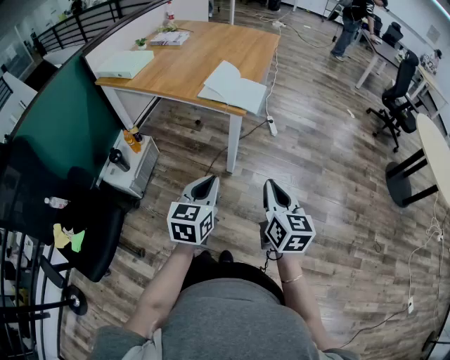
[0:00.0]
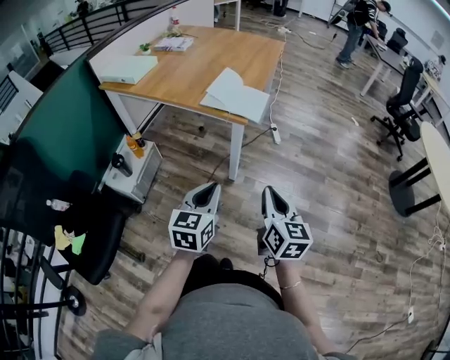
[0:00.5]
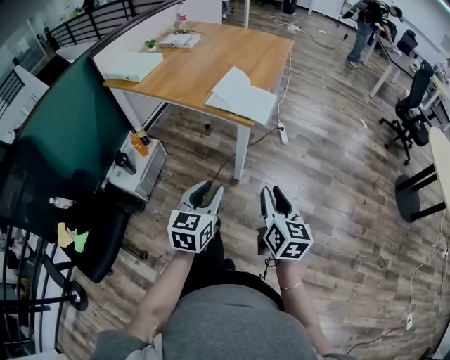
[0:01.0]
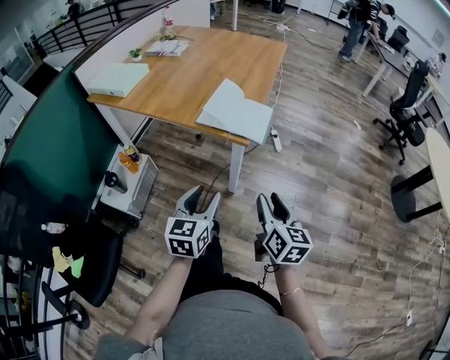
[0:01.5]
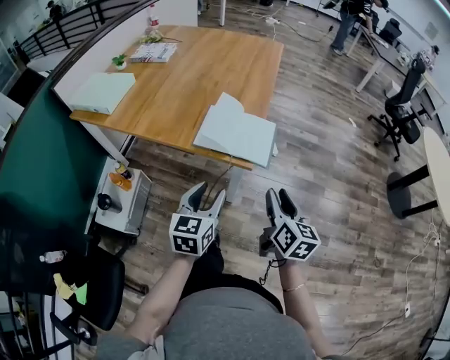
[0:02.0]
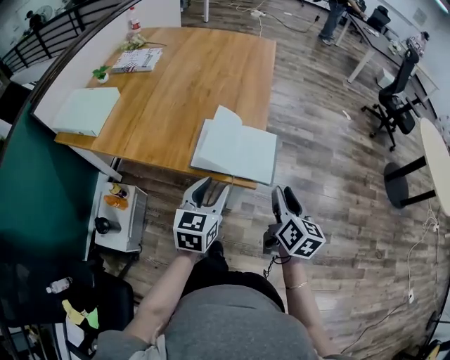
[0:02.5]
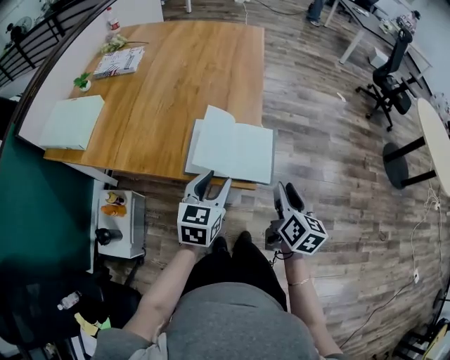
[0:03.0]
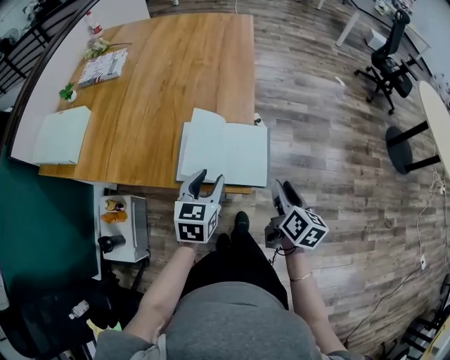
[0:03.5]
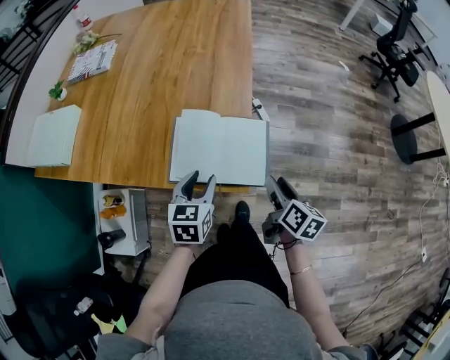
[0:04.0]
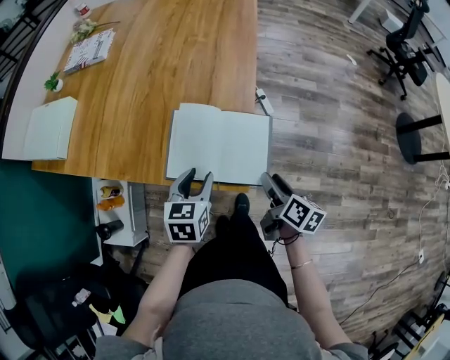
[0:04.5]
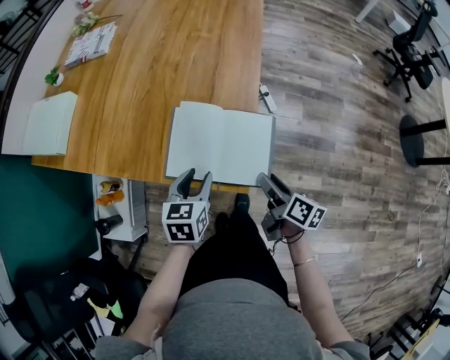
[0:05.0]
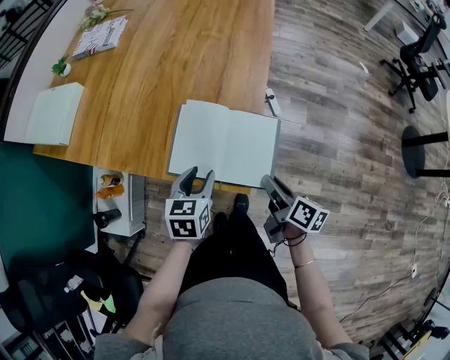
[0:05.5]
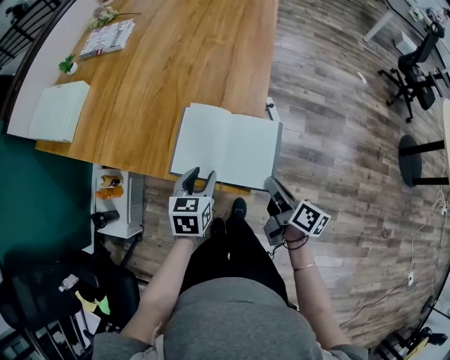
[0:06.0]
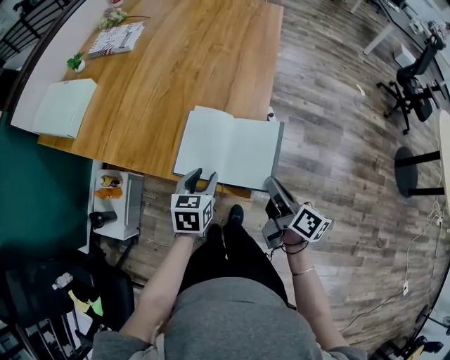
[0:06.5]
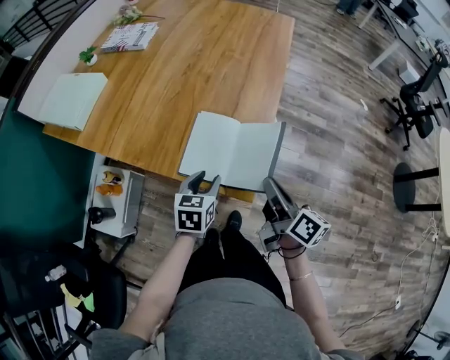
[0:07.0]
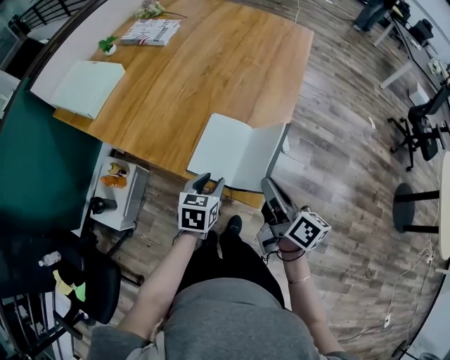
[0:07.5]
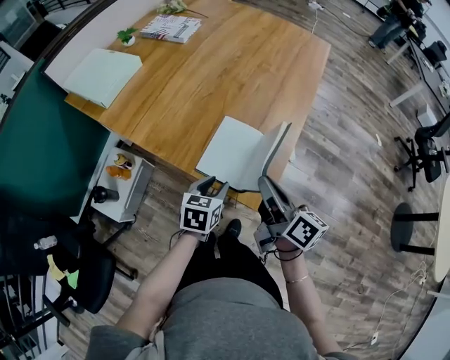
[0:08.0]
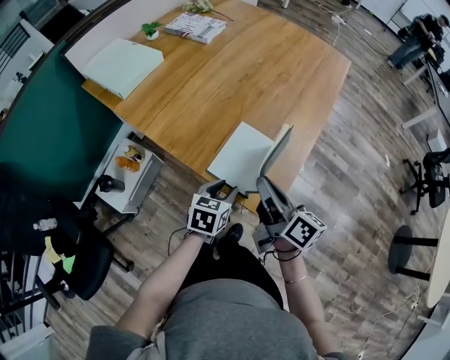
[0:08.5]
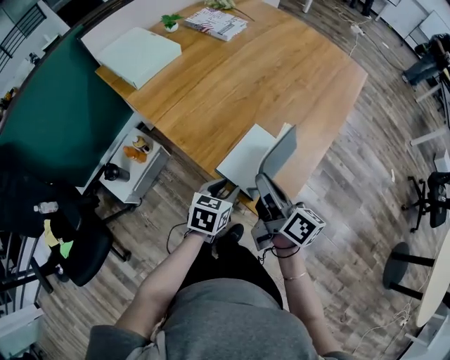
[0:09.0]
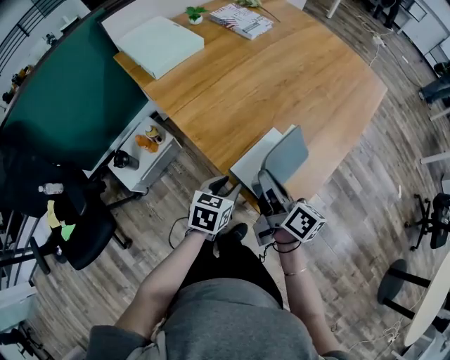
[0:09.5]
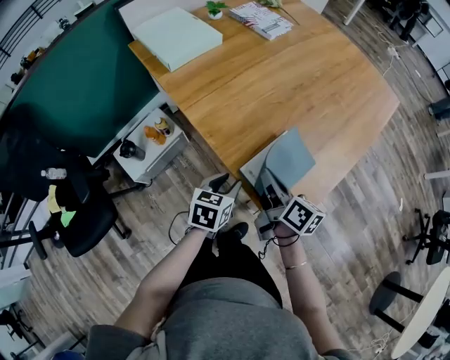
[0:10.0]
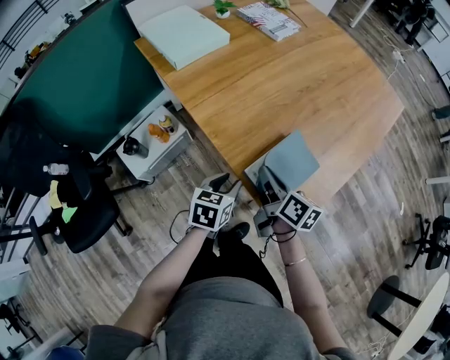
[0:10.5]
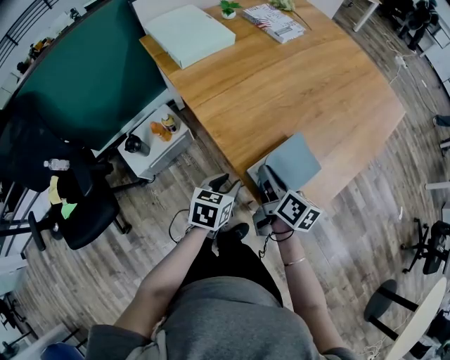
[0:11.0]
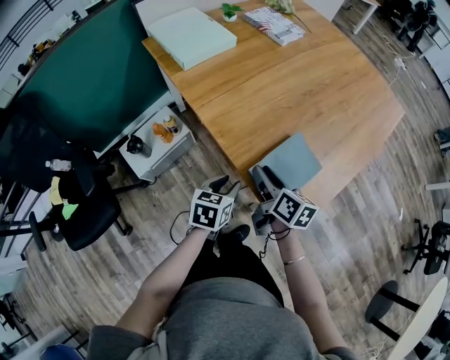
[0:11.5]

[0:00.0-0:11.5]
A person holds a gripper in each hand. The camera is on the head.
0:00.0 to 0:02.0: Both grippers travel together forward, about 25 cm. The left gripper opens up; the right gripper opens its fingers.
0:02.0 to 0:04.0: Both grippers travel together forward and downward, about 20 cm. The right gripper rotates about 20 degrees.
0:04.0 to 0:06.0: The right gripper changes its angle by about 20 degrees, and closes its fingers.
0:06.0 to 0:07.5: The right gripper shifts approximately 15 cm upward and to the left, and swivels roughly 20 degrees.
0:07.5 to 0:09.5: The right gripper is displaced to the left and forward by some 15 cm, and swivels approximately 20 degrees. The left gripper heads to the left, covering approximately 5 cm.
0:09.5 to 0:11.5: The right gripper is displaced downward and to the left by roughly 10 cm, and opens its fingers, while the left gripper shifts about 5 cm to the left.

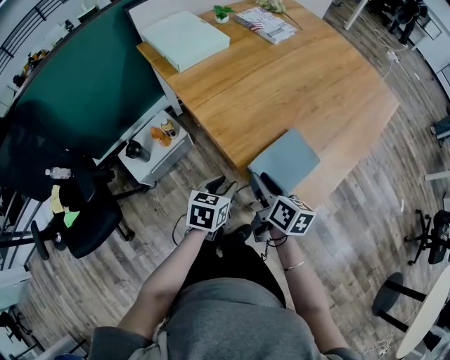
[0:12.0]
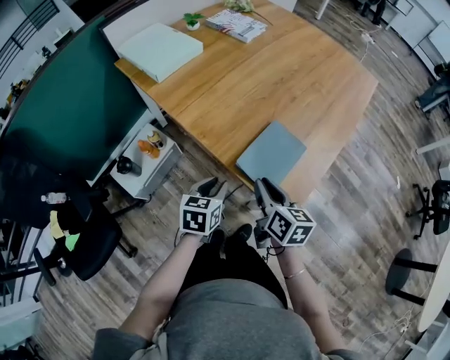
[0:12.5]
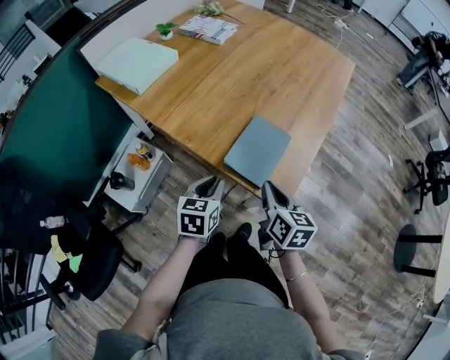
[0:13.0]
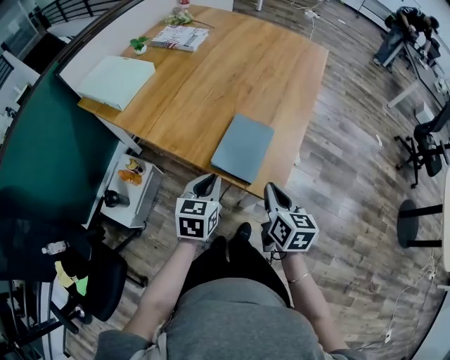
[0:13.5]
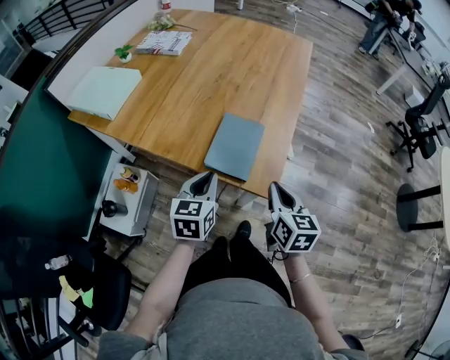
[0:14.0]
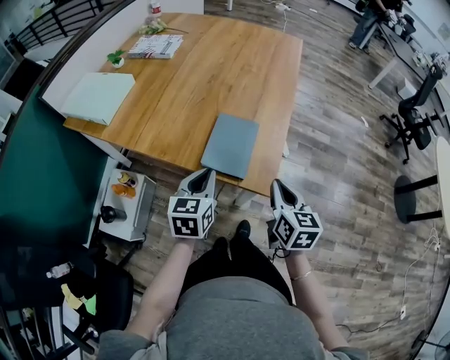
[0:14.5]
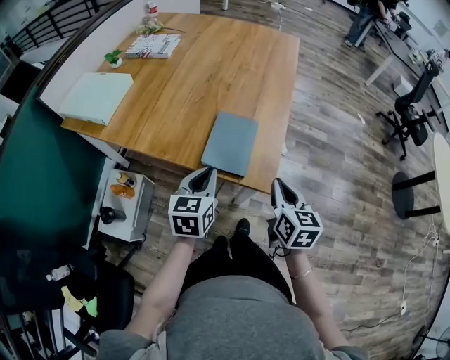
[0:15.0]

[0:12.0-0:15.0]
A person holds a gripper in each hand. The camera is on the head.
0:12.0 to 0:13.5: The right gripper moves to the right and backward, about 15 cm, changes its angle by about 30 degrees, and closes its fingers, while the left gripper travels upward by roughly 5 cm, rotates about 20 degrees, and closes up.
0:13.5 to 0:15.0: The right gripper shifts by some 5 cm.

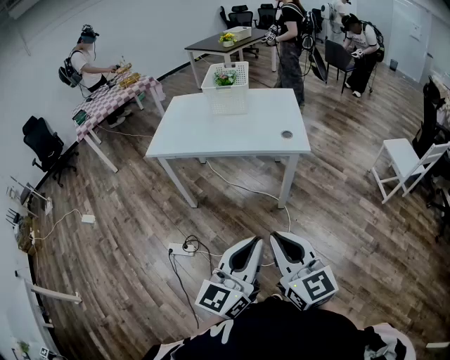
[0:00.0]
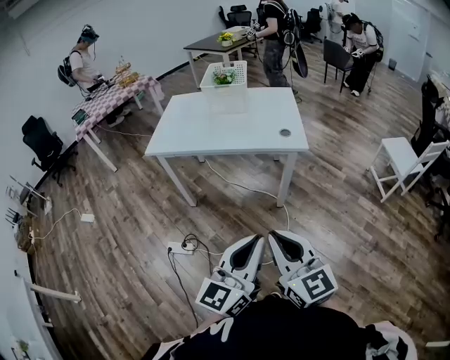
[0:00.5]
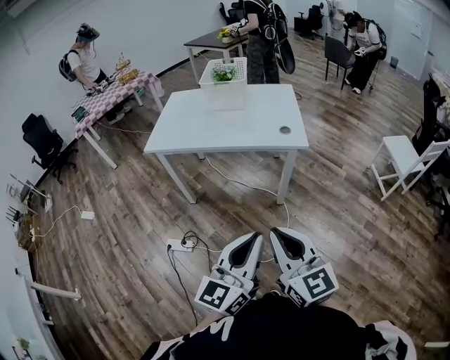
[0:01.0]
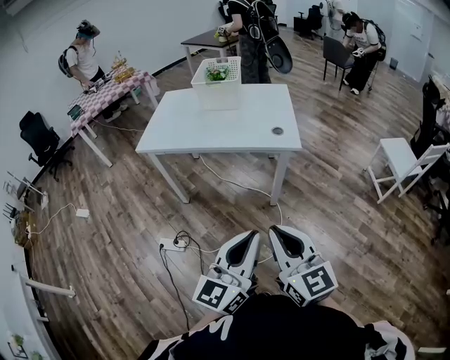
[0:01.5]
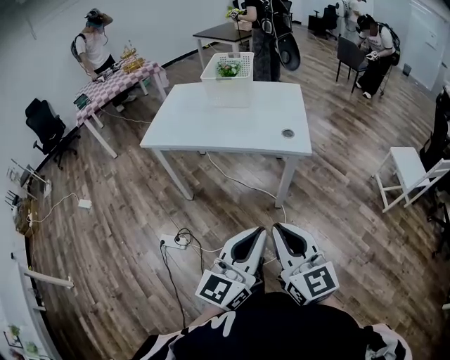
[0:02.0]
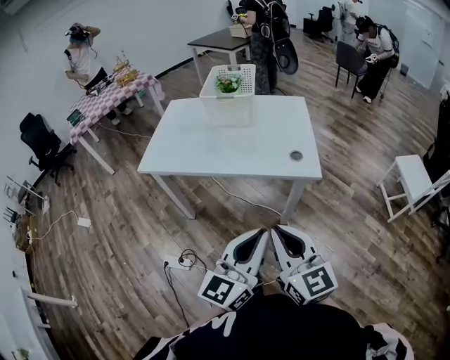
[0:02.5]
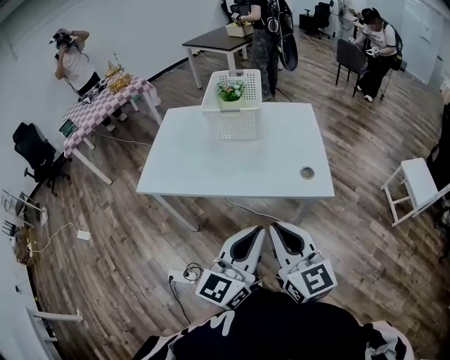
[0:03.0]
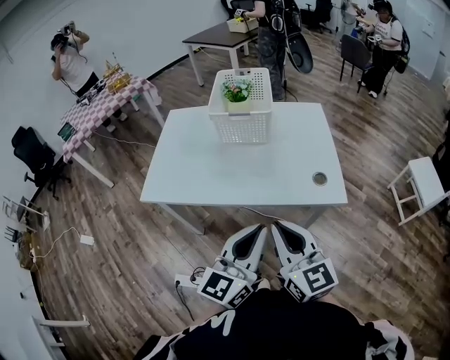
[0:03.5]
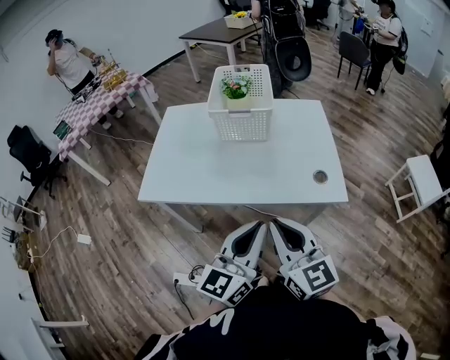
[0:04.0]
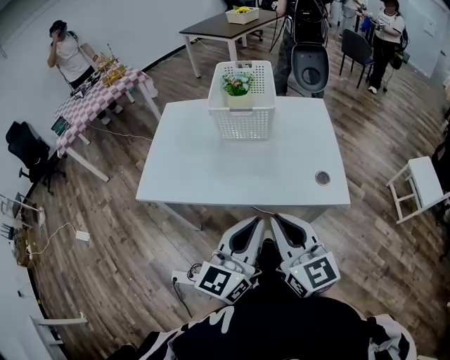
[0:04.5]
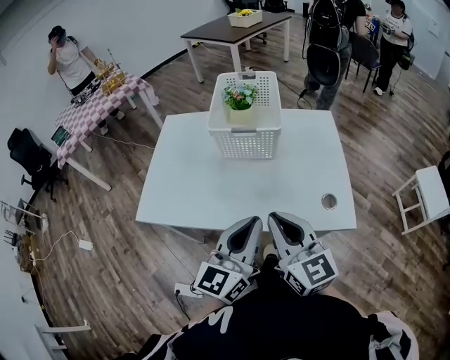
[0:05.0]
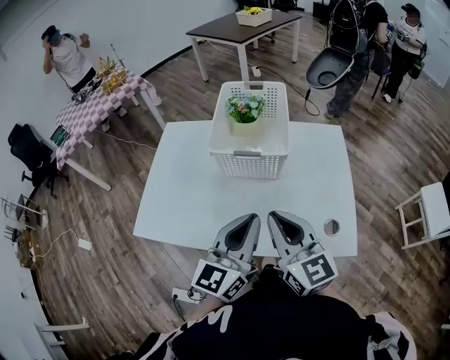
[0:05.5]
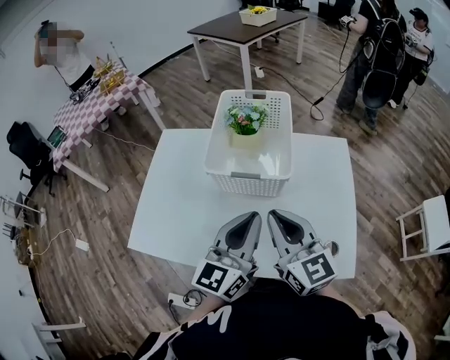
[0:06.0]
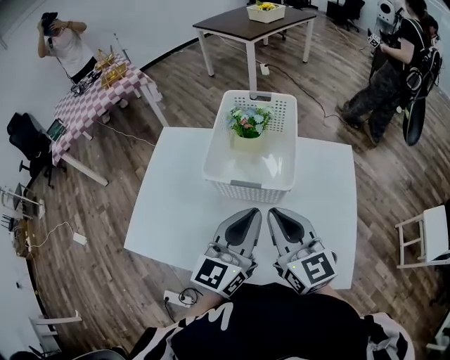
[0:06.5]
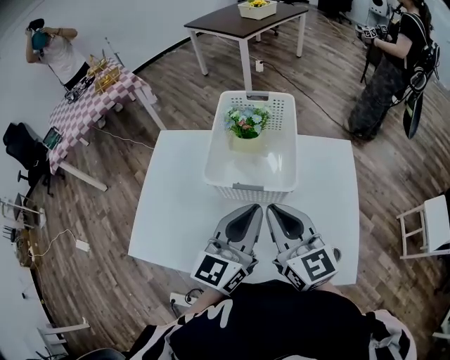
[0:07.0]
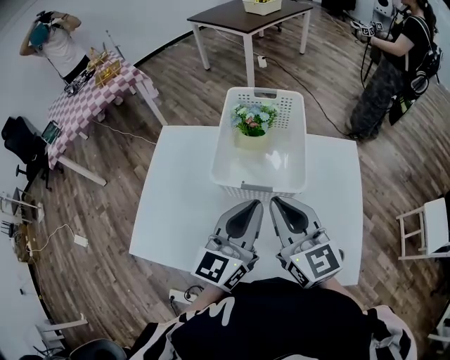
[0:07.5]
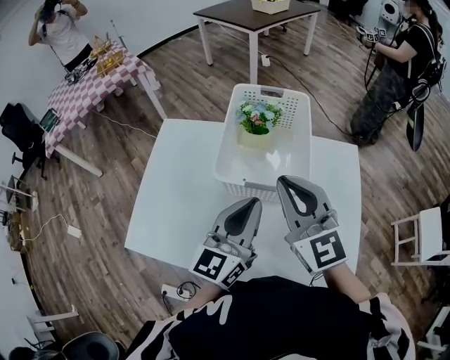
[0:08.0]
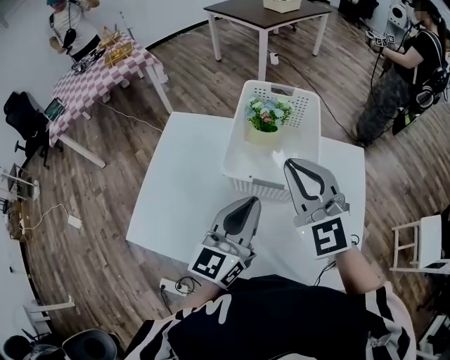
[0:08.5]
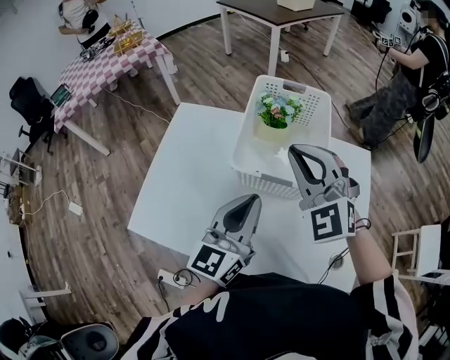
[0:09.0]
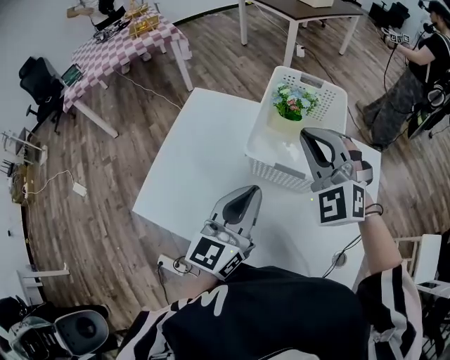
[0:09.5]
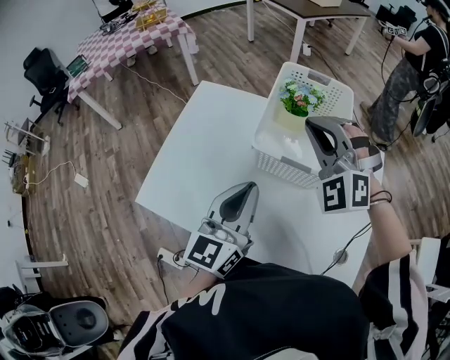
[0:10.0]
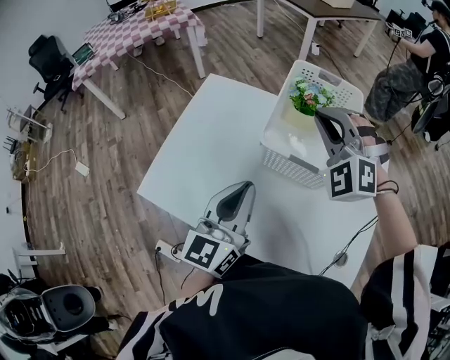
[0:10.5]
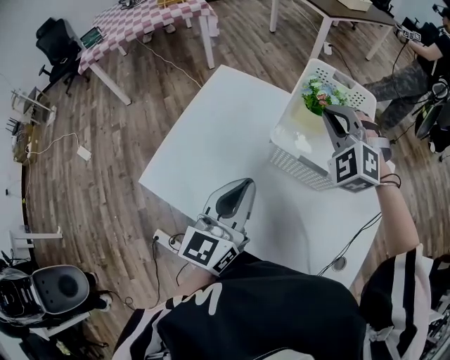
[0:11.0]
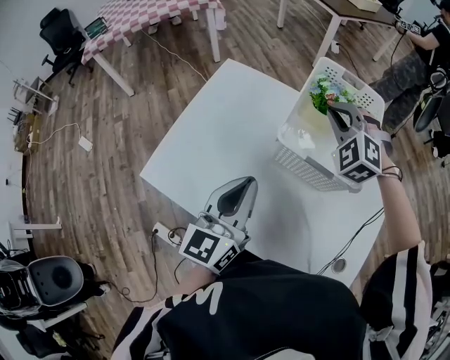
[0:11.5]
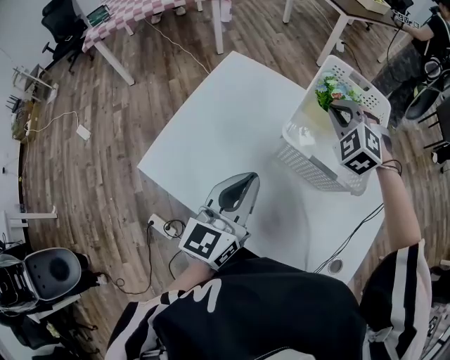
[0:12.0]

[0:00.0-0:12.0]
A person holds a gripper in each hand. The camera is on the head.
0:00.0 to 0:02.0: The right gripper travels forward by about 5 cm, while the left gripper heads forward and to the right, covering roughly 10 cm.
0:02.0 to 0:04.0: Both grippers move forward and to the left, some 30 cm.
0:04.0 to 0:06.0: Both grippers travel together forward, approximately 30 cm.
0:06.0 to 0:08.0: The right gripper heads forward and upward, covering approximately 10 cm, while the left gripper is displaced forward by some 5 cm.
0:08.0 to 0:10.0: The left gripper goes some 5 cm to the left; the right gripper goes some 10 cm forward, and rolls counterclockwise, seen from behind, by some 60 degrees.
0:10.0 to 0:12.0: The right gripper travels downward and forward by about 15 cm, and swivels approximately 20 degrees. The left gripper moves approximately 5 cm.
